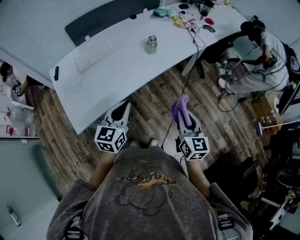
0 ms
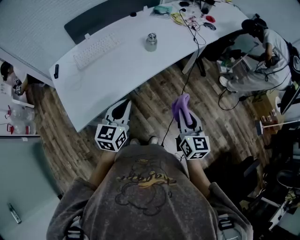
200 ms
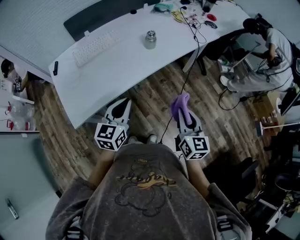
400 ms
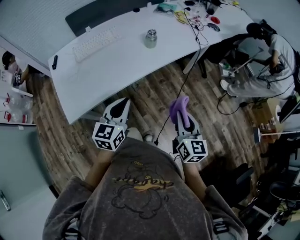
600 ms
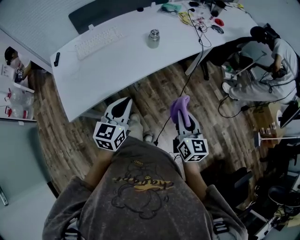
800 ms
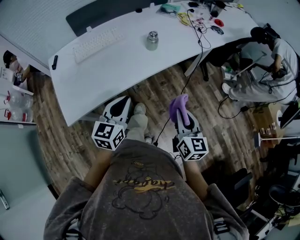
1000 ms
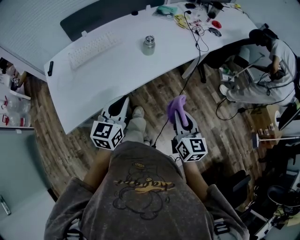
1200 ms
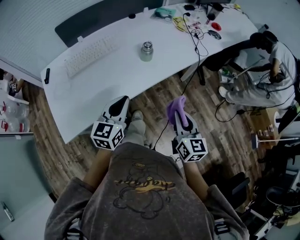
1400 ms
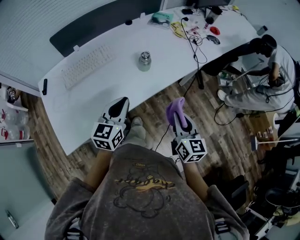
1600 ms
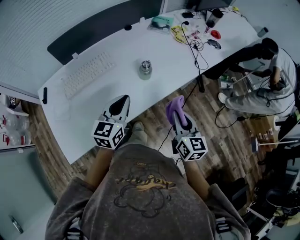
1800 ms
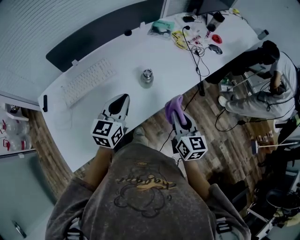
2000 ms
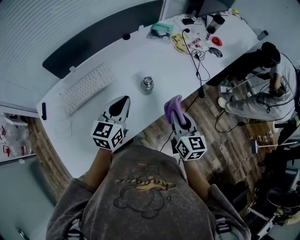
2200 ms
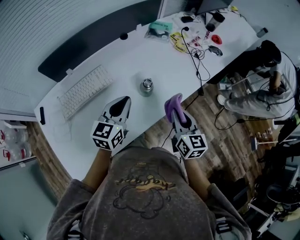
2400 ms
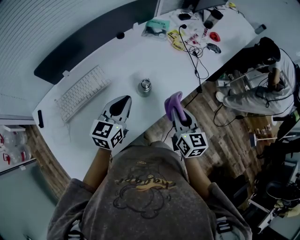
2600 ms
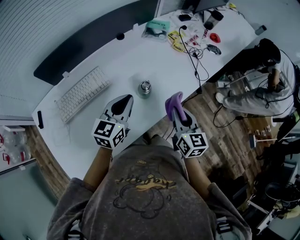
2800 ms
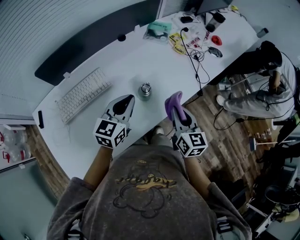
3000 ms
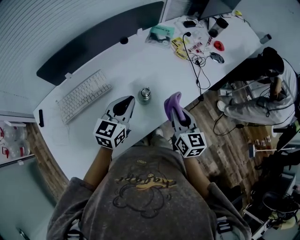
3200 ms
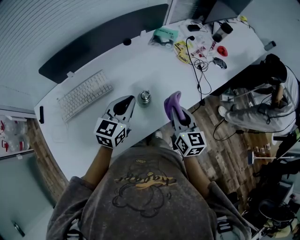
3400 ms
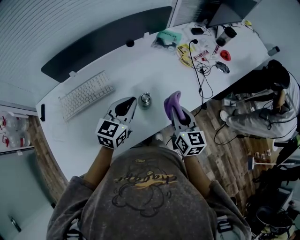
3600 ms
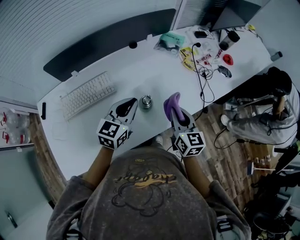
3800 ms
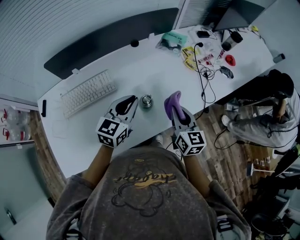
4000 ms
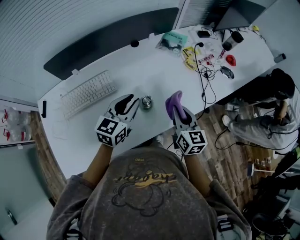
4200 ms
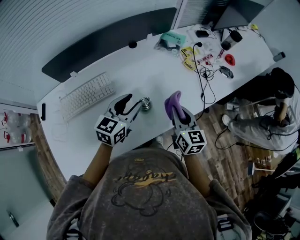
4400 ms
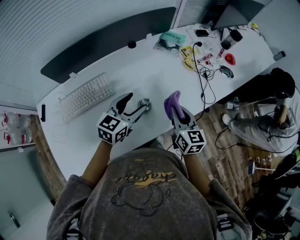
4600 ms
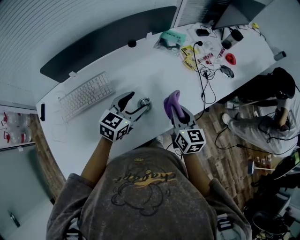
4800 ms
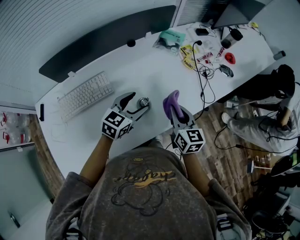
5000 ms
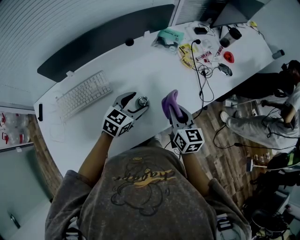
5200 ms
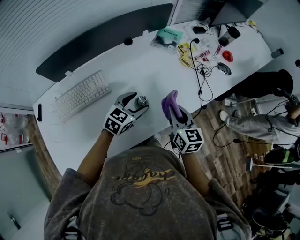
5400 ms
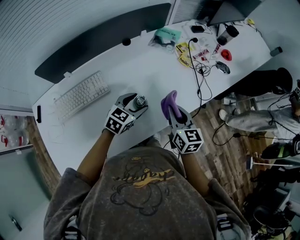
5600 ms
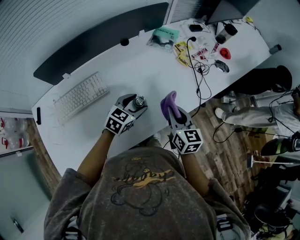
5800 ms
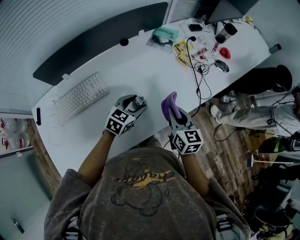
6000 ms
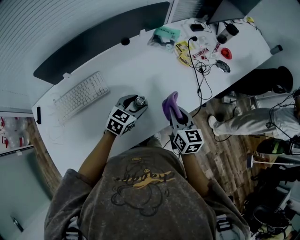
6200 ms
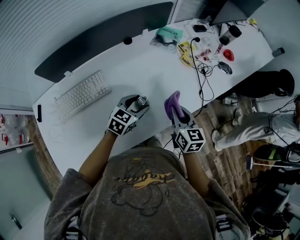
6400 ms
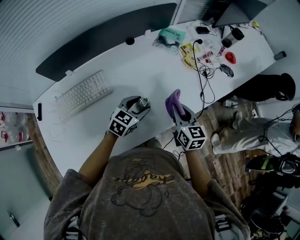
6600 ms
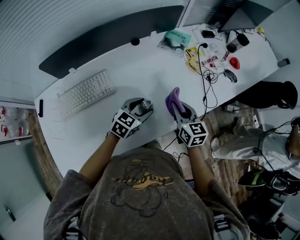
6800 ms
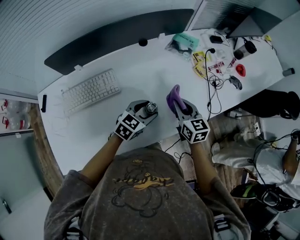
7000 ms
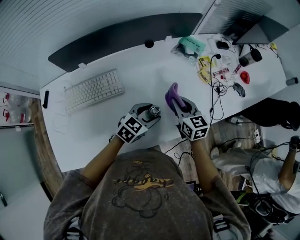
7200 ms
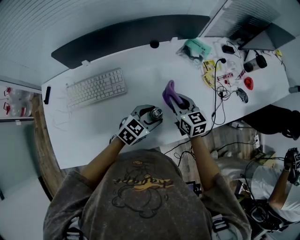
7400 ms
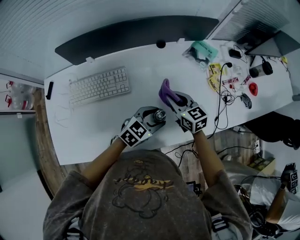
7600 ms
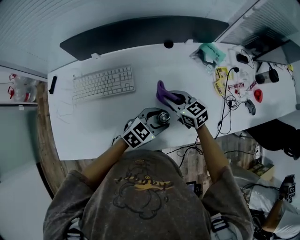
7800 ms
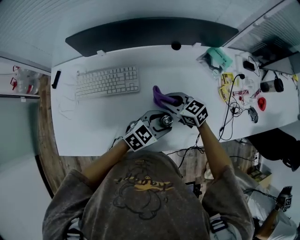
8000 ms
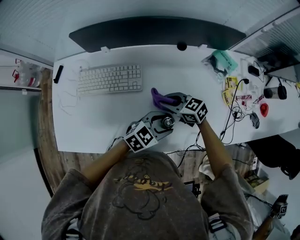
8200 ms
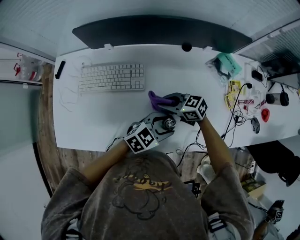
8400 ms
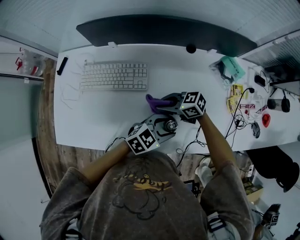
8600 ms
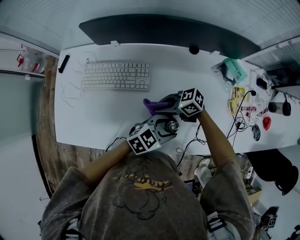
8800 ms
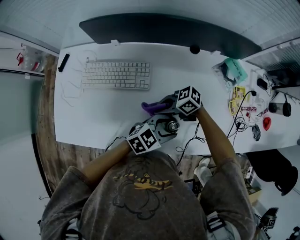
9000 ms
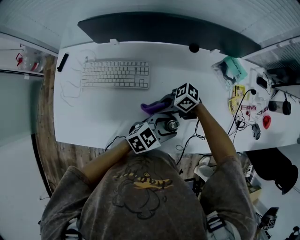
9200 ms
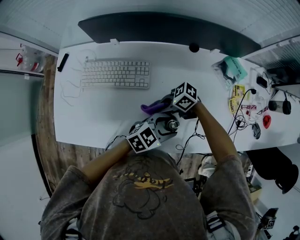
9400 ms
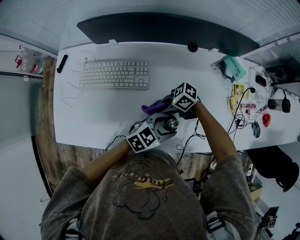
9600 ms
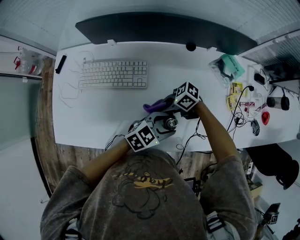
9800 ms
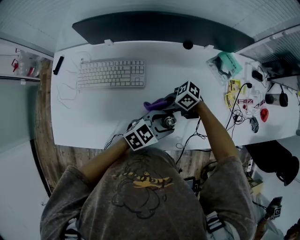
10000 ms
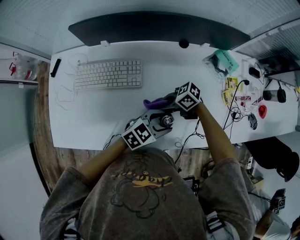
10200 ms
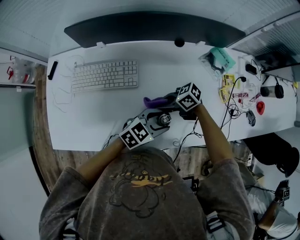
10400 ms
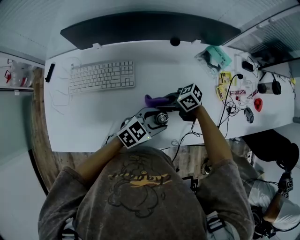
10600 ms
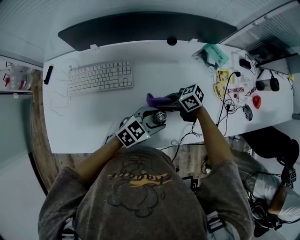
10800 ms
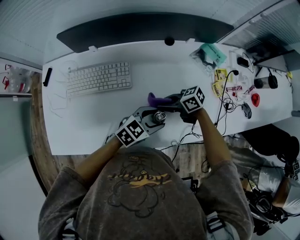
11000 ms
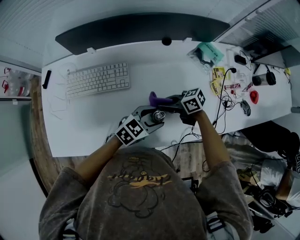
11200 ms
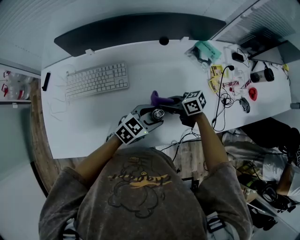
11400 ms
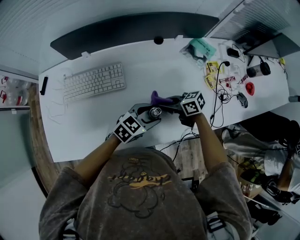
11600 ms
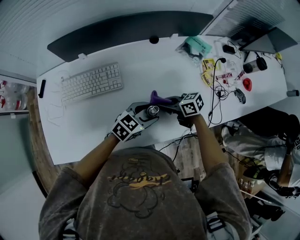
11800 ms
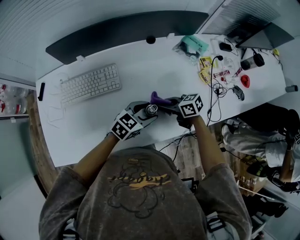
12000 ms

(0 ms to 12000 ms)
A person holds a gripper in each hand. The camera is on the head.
0 ms - 1600 ms: Both grippers move forward, roughly 15 cm.
1600 ms - 3000 ms: Both grippers travel together forward, approximately 20 cm.
3000 ms - 4400 ms: The right gripper is displaced forward by about 10 cm, while the left gripper heads forward, covering roughly 5 cm, and opens its fingers.
4400 ms - 6000 ms: The left gripper heads downward, covering approximately 10 cm, and changes its angle by approximately 20 degrees.
6000 ms - 7600 ms: The right gripper goes about 20 cm to the left and forward, and swivels roughly 40 degrees.
7600 ms - 9000 ms: The right gripper ends up approximately 15 cm from where it was, and changes its angle by roughly 70 degrees.
9000 ms - 10400 ms: The grippers make only small movements.
10400 ms - 12000 ms: The right gripper shifts by about 10 cm, and rotates some 30 degrees.

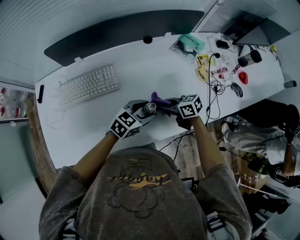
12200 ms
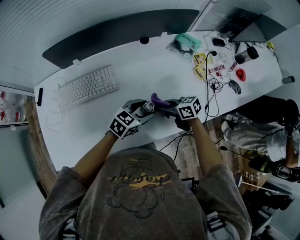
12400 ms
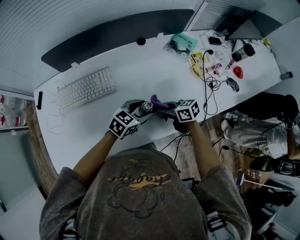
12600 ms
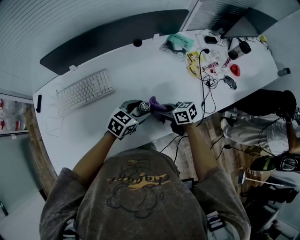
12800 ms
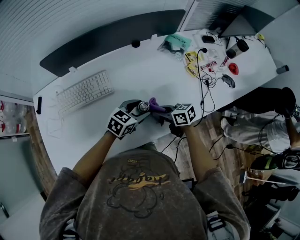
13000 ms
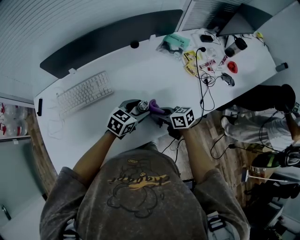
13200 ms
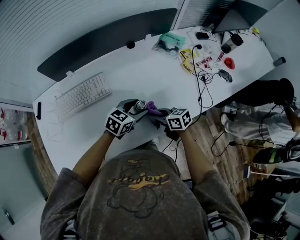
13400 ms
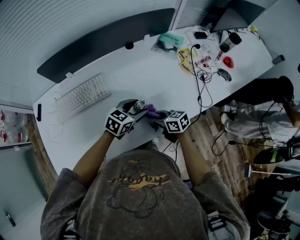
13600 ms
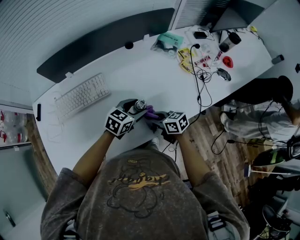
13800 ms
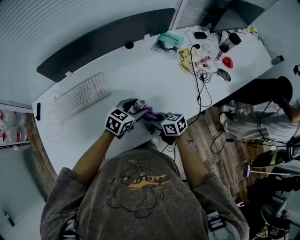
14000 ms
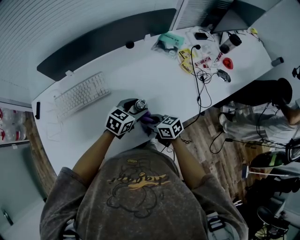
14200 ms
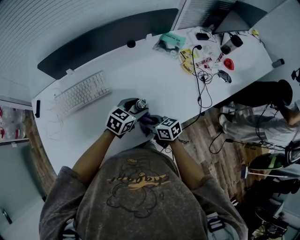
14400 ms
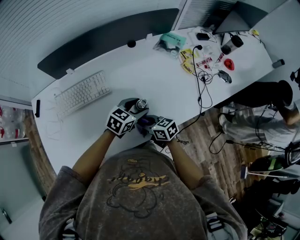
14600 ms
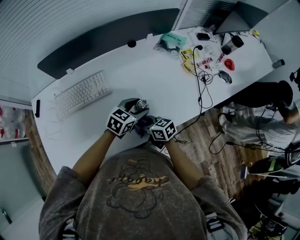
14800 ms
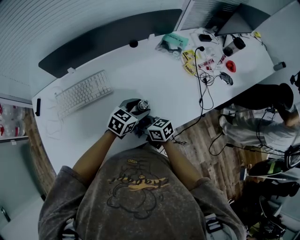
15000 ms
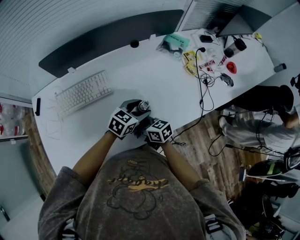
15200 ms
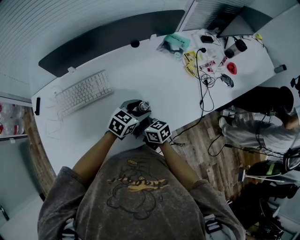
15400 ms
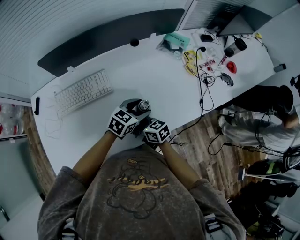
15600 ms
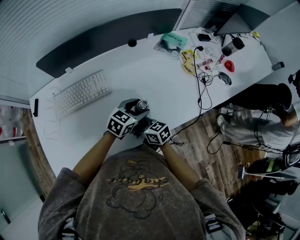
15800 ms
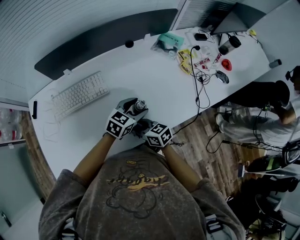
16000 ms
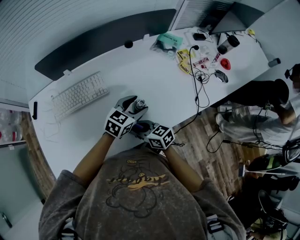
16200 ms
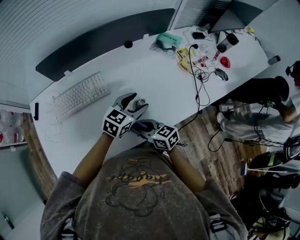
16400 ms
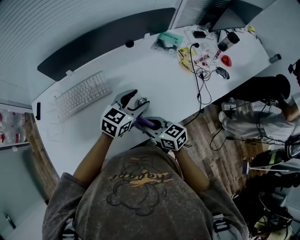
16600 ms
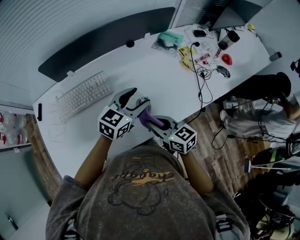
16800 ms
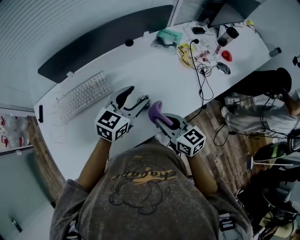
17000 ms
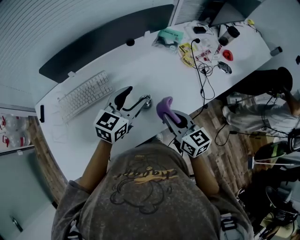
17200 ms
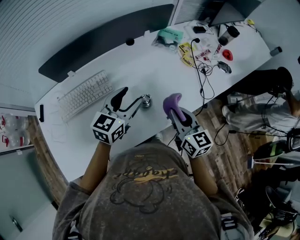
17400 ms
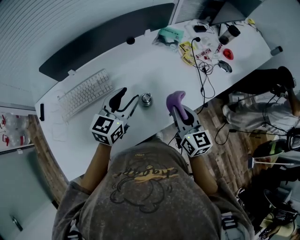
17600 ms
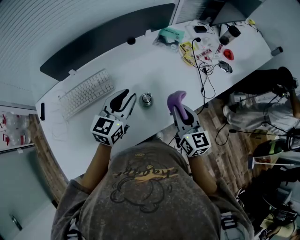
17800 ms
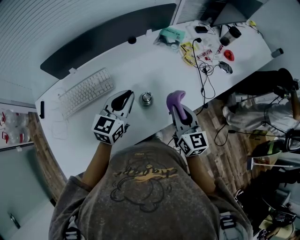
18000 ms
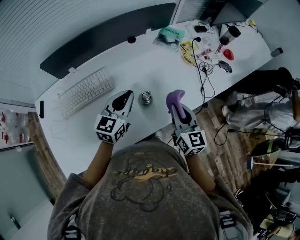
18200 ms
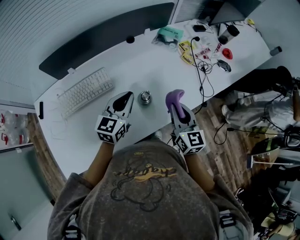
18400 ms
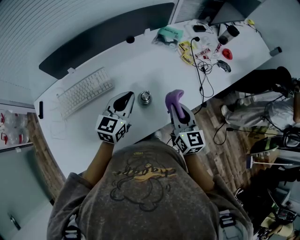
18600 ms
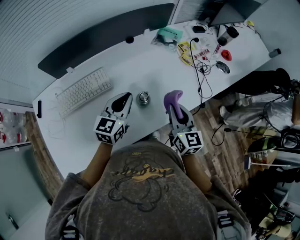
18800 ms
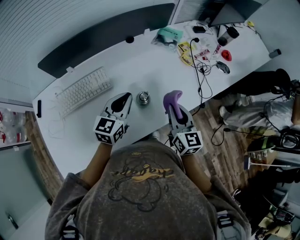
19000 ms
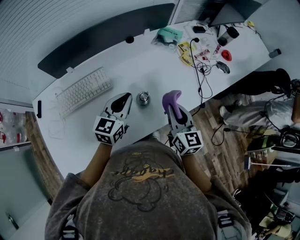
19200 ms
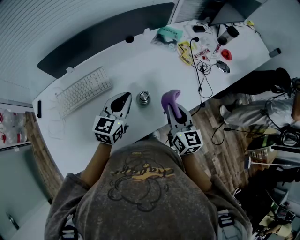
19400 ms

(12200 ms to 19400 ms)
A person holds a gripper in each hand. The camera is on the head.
12200 ms - 13600 ms: The right gripper ends up about 5 cm from where it was.
13600 ms - 15000 ms: The right gripper shifts approximately 10 cm to the left.
15000 ms - 16600 ms: The two grippers go about 10 cm upward.
16600 ms - 18000 ms: The left gripper travels to the left by roughly 5 cm, and closes up, while the right gripper goes approximately 15 cm to the right and upward, and changes its angle by about 40 degrees.
18000 ms - 19400 ms: The grippers move only a little.

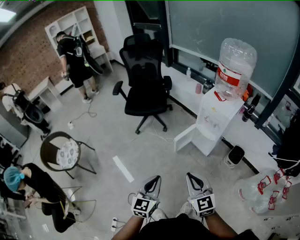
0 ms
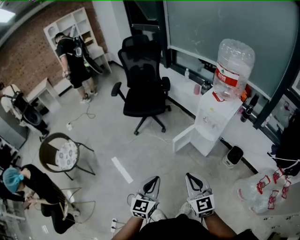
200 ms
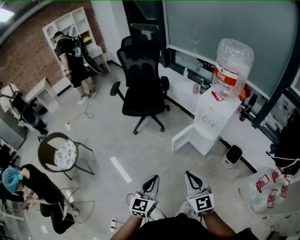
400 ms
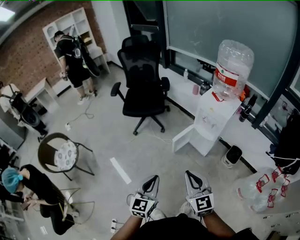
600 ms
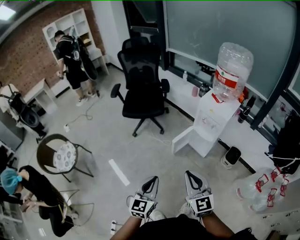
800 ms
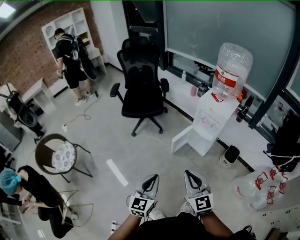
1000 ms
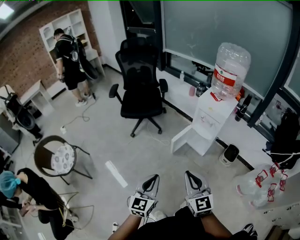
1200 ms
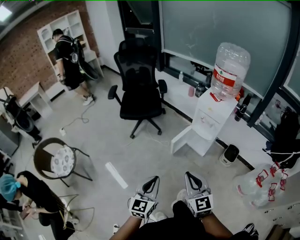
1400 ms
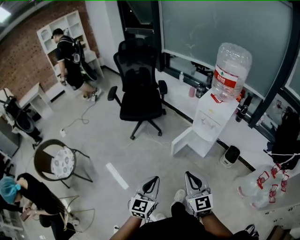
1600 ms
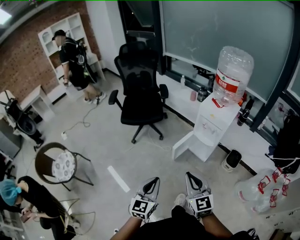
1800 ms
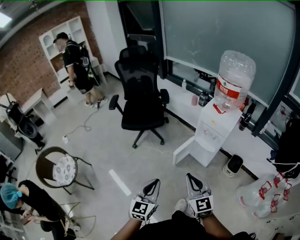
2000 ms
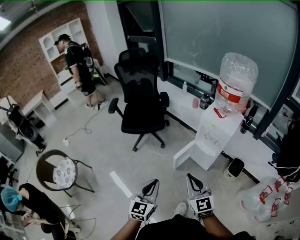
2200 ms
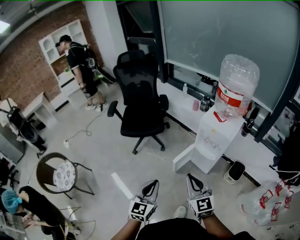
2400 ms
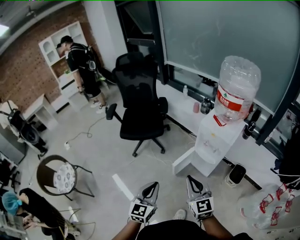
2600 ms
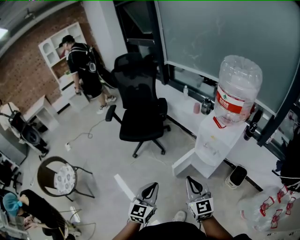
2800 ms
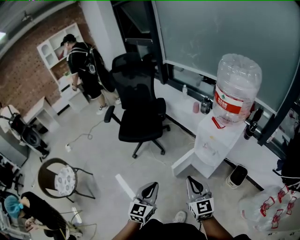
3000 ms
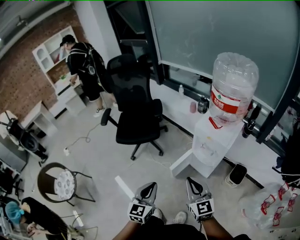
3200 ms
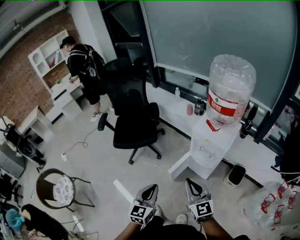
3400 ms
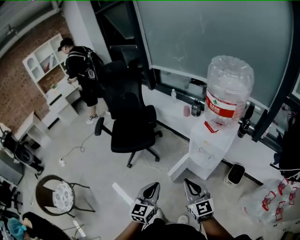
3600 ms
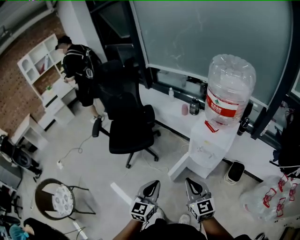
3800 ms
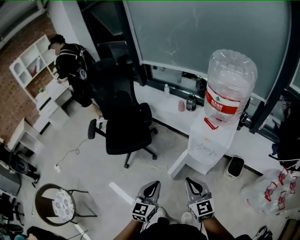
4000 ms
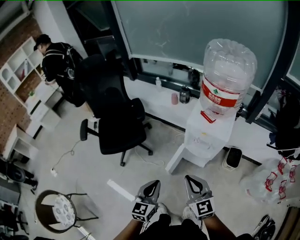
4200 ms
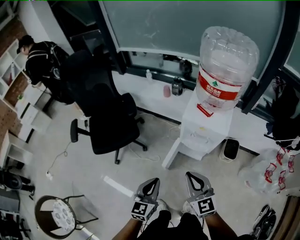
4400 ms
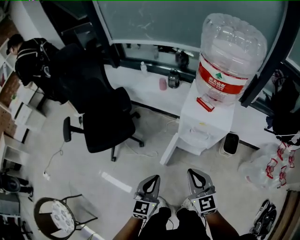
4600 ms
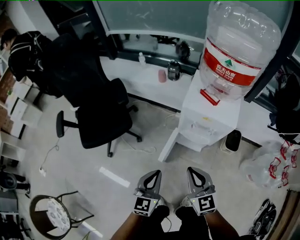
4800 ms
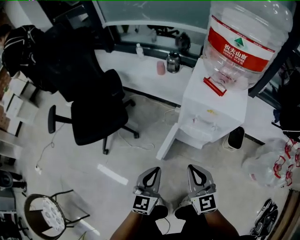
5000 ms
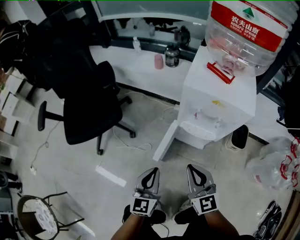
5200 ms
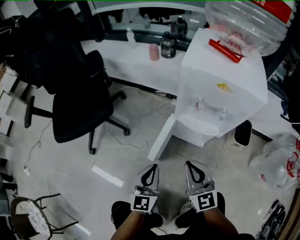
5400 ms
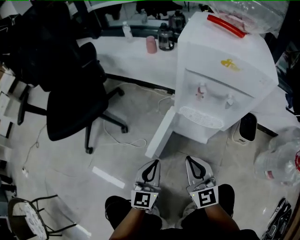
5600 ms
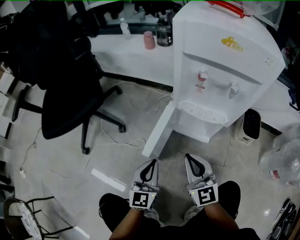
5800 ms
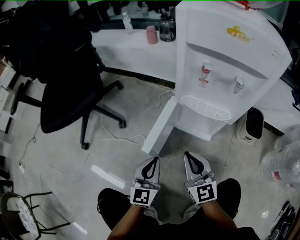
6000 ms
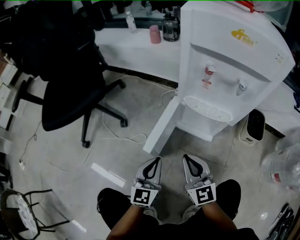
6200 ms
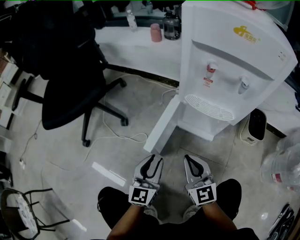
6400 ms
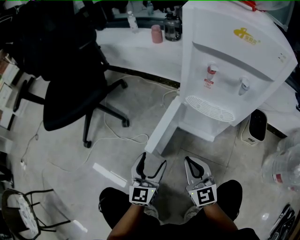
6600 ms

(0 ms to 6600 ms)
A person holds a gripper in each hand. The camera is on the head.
0 ms - 1600 ms: Both grippers travel together to the left, some 5 cm.
1600 ms - 3200 ms: The left gripper is displaced forward by roughly 20 cm. The right gripper is displaced forward and to the right by some 25 cm.
3200 ms - 5000 ms: The two grippers go approximately 25 cm downward and forward. The left gripper turns by roughly 20 degrees.
5000 ms - 6600 ms: The grippers both shift downward by roughly 35 cm. The left gripper opens up.
